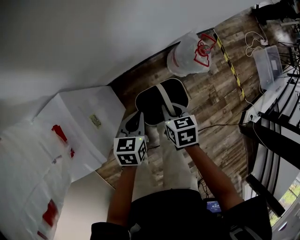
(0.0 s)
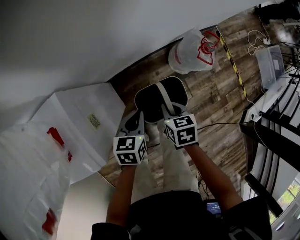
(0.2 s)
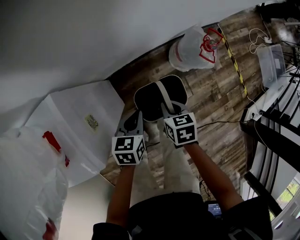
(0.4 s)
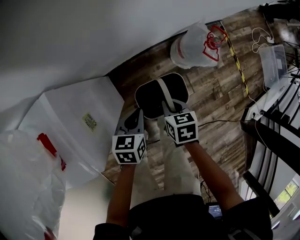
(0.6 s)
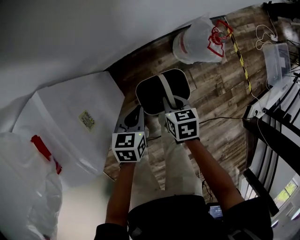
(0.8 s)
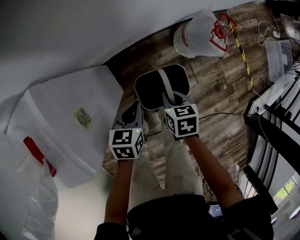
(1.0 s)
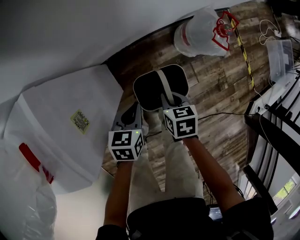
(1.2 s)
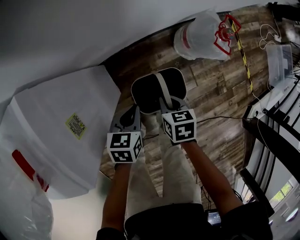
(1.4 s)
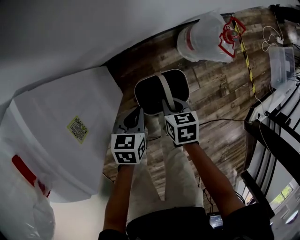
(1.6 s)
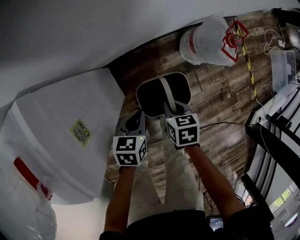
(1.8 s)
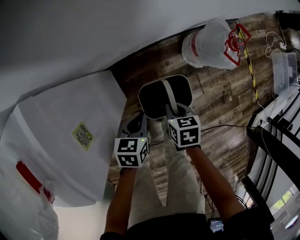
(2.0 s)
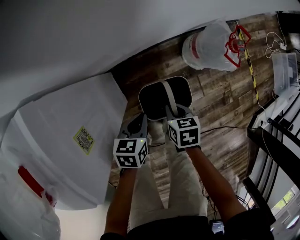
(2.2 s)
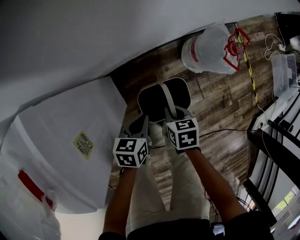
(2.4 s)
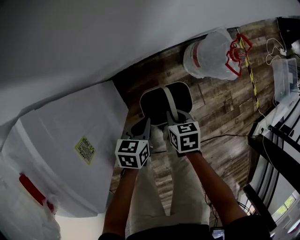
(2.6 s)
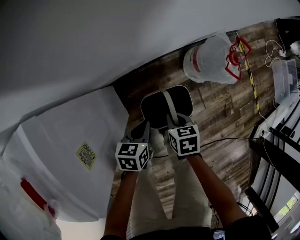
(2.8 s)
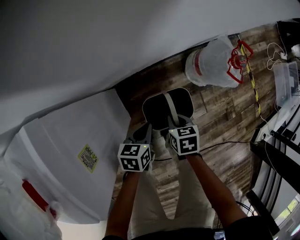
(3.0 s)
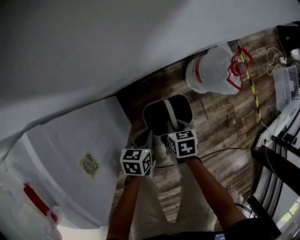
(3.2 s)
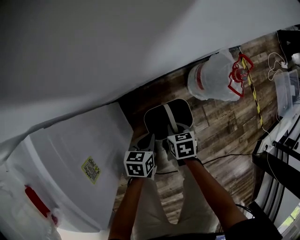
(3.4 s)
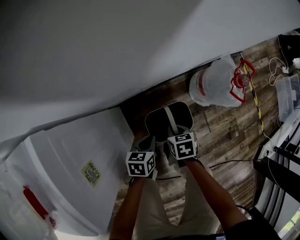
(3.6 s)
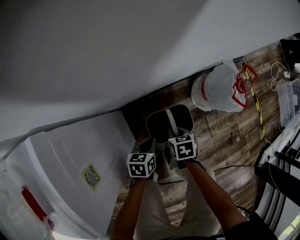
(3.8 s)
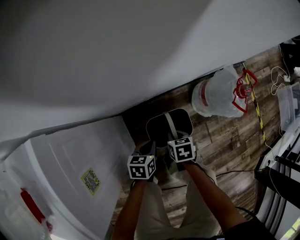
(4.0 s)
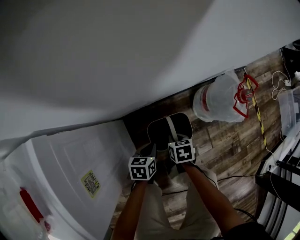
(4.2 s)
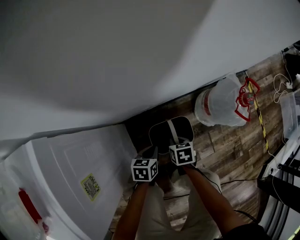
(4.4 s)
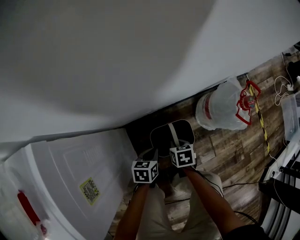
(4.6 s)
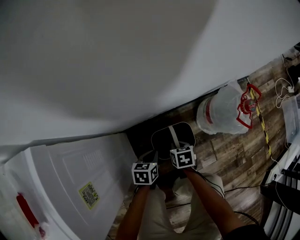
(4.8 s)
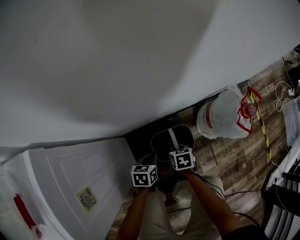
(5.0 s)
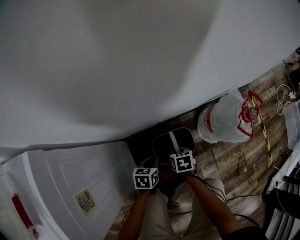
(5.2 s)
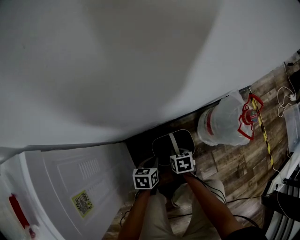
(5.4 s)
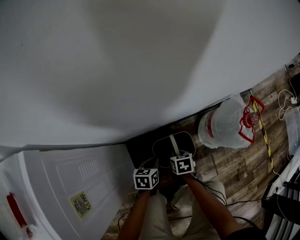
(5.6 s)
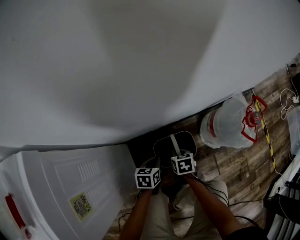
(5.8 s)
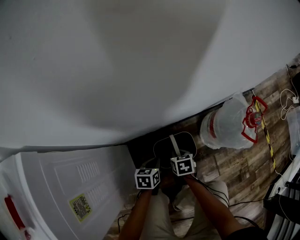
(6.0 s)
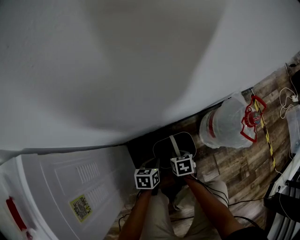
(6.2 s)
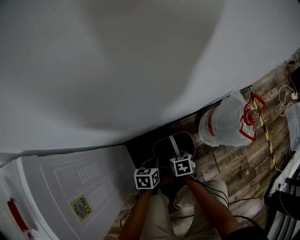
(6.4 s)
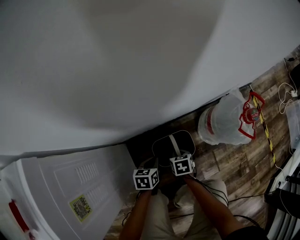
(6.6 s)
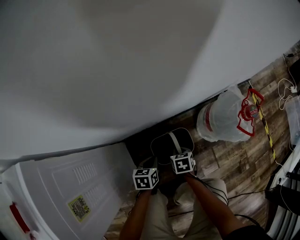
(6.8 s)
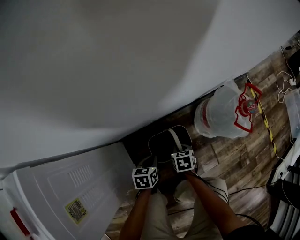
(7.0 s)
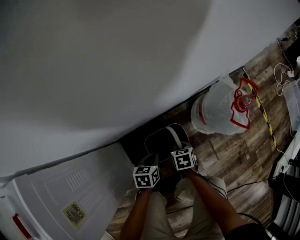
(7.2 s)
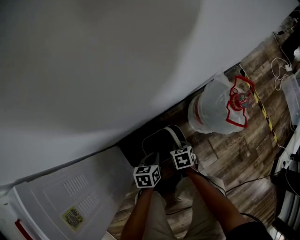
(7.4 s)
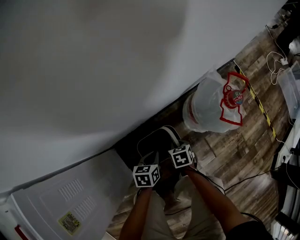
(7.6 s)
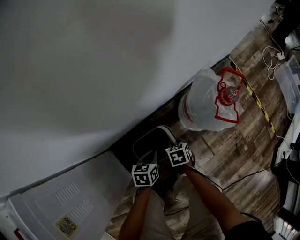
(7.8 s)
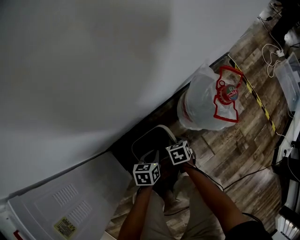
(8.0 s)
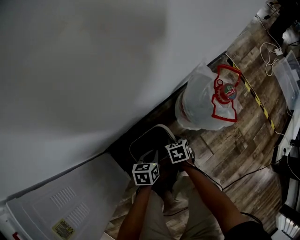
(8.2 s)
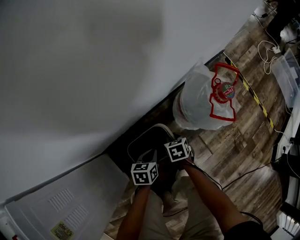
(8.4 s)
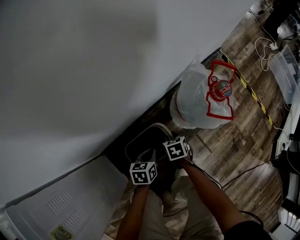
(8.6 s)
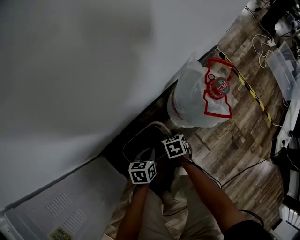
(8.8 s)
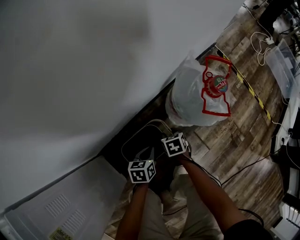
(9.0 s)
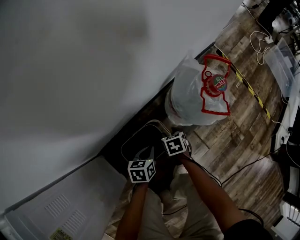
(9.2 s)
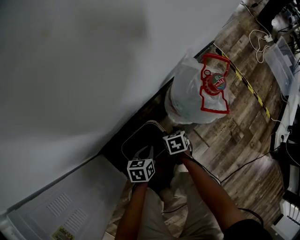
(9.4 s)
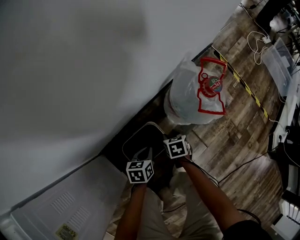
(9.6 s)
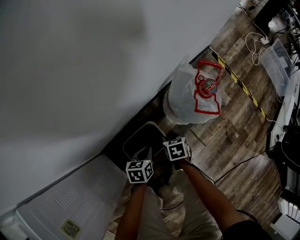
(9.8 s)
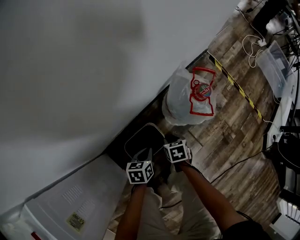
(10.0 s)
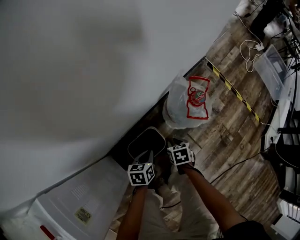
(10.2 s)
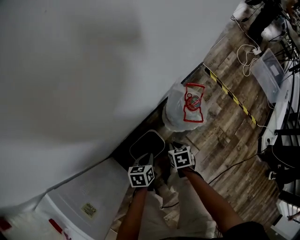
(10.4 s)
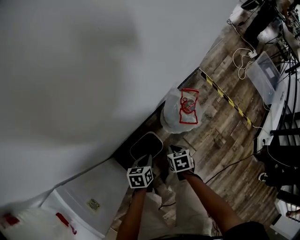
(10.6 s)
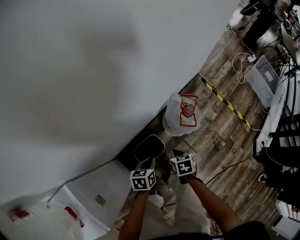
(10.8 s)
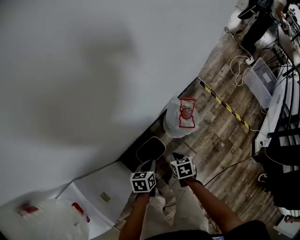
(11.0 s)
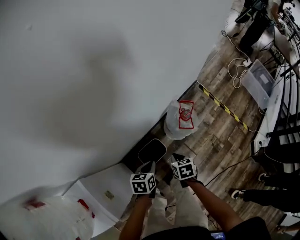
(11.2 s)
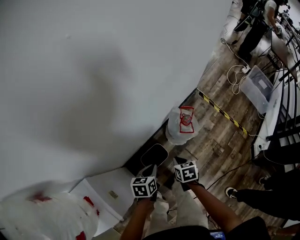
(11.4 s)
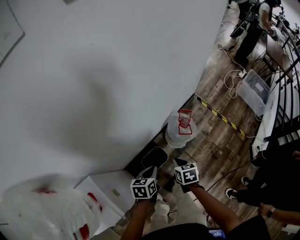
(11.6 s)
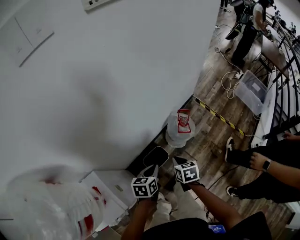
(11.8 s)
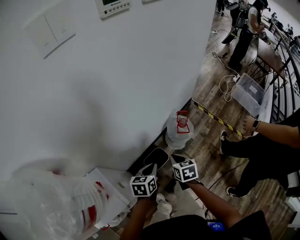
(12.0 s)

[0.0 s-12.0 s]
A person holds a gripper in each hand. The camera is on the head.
0.0 to 1.6 s: Both grippers travel together downward, approximately 15 cm.
1.6 to 3.0 s: Both grippers travel together downward, about 5 cm.
3.0 to 4.4 s: The right gripper heads downward and forward, covering some 10 cm. Meanwhile the left gripper heads downward, covering some 10 cm.
4.4 to 6.0 s: The grippers both shift downward by approximately 5 cm.
6.0 to 7.6 s: The two grippers go roughly 10 cm to the right.
7.6 to 9.0 s: Both grippers move to the right, about 5 cm. The right gripper opens up.
9.0 to 10.4 s: Both grippers move upward, roughly 20 cm. The right gripper closes up.
10.4 to 12.0 s: The two grippers go approximately 40 cm upward. The right gripper turns by roughly 20 degrees.

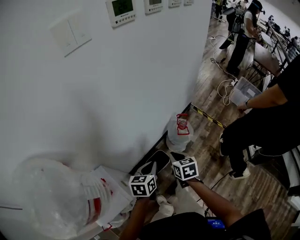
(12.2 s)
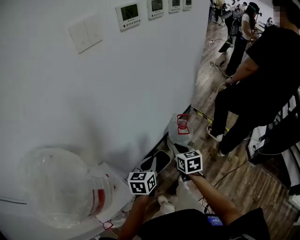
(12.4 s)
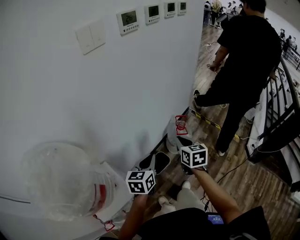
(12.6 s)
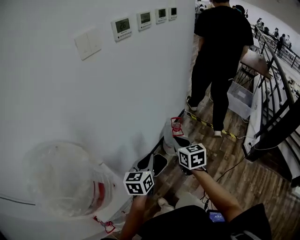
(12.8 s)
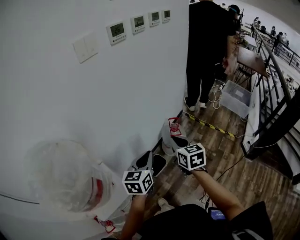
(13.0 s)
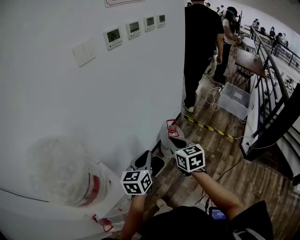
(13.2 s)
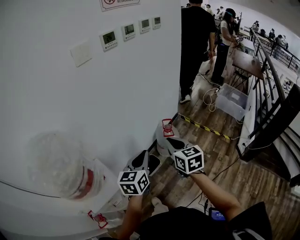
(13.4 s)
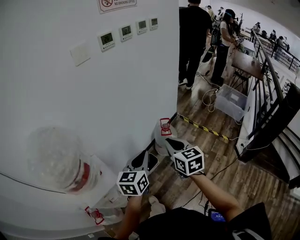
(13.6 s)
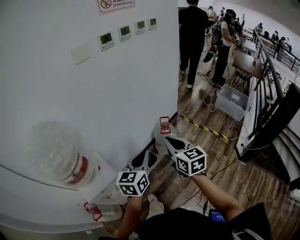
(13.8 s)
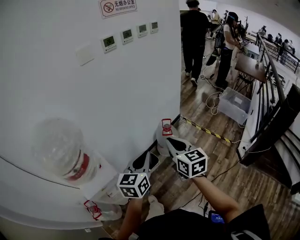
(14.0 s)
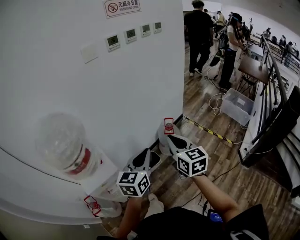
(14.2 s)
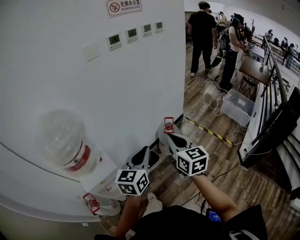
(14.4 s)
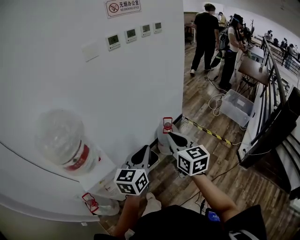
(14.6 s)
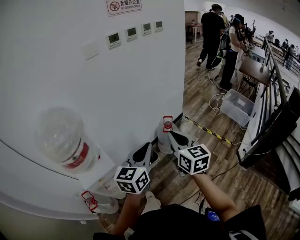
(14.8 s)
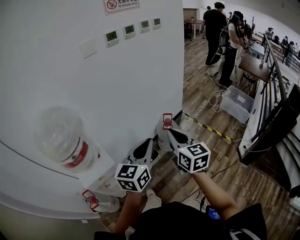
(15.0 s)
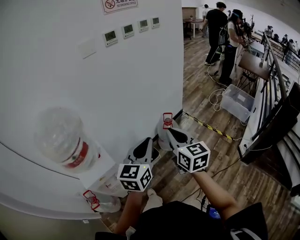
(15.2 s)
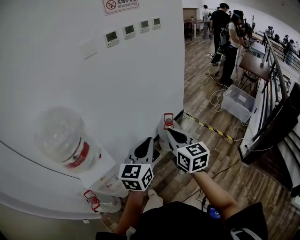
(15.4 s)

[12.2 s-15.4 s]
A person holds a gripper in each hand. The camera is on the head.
12.2 to 13.8 s: Both grippers move upward, backward and to the right, about 30 cm. The left gripper rotates roughly 30 degrees. The right gripper turns by about 30 degrees.
13.8 to 15.4 s: The left gripper goes some 10 cm upward and backward, while the right gripper changes place by roughly 5 cm.

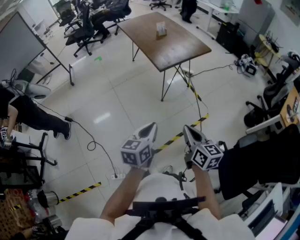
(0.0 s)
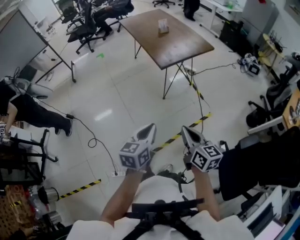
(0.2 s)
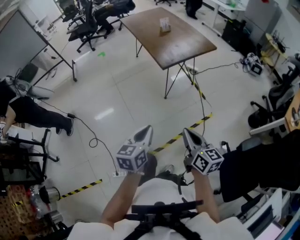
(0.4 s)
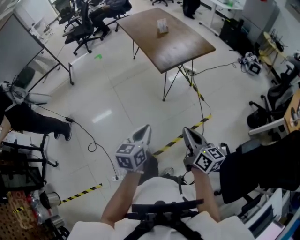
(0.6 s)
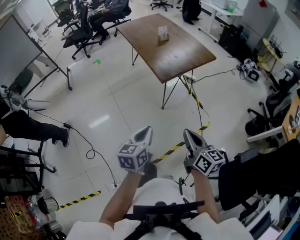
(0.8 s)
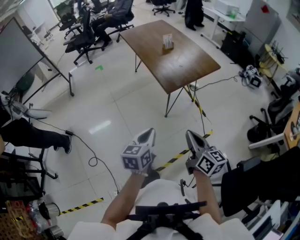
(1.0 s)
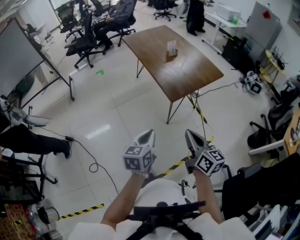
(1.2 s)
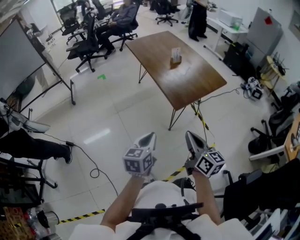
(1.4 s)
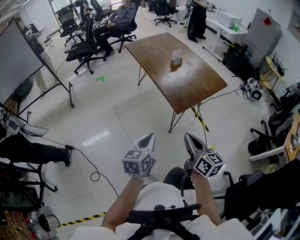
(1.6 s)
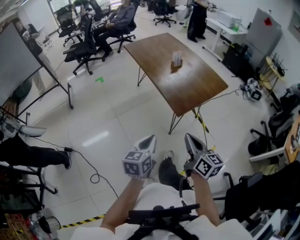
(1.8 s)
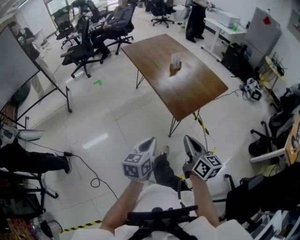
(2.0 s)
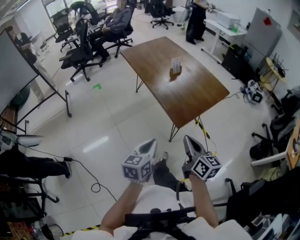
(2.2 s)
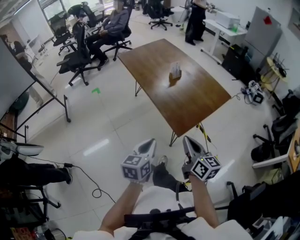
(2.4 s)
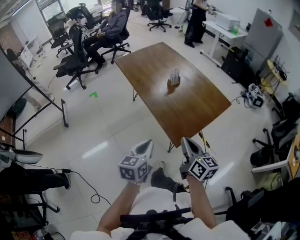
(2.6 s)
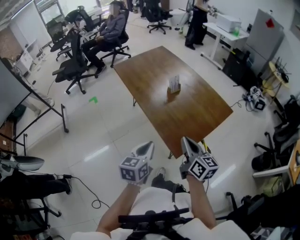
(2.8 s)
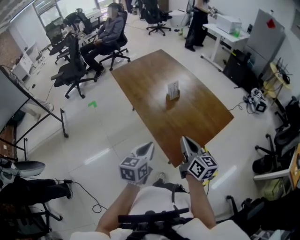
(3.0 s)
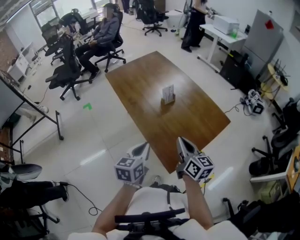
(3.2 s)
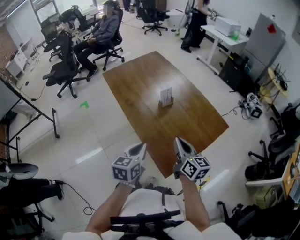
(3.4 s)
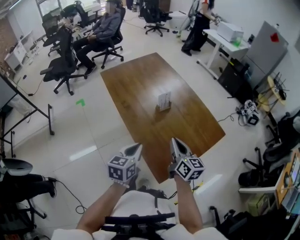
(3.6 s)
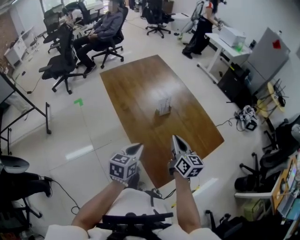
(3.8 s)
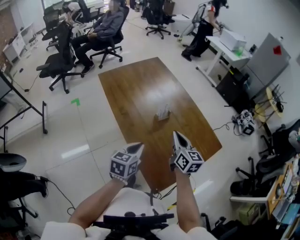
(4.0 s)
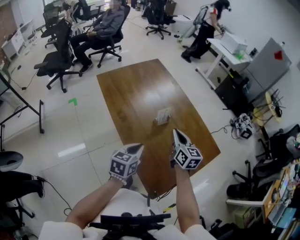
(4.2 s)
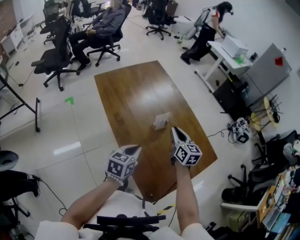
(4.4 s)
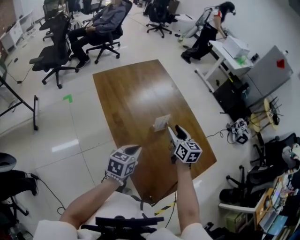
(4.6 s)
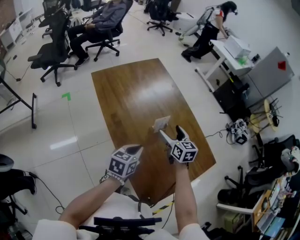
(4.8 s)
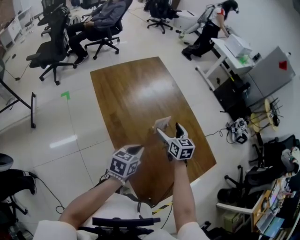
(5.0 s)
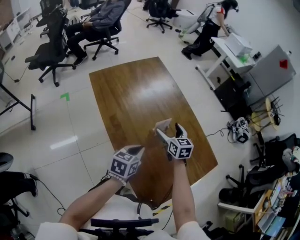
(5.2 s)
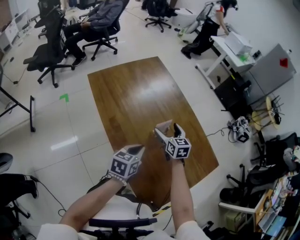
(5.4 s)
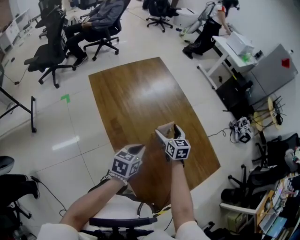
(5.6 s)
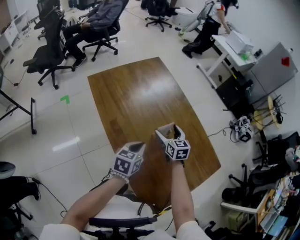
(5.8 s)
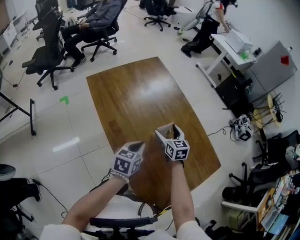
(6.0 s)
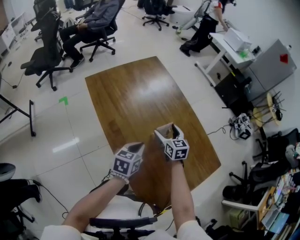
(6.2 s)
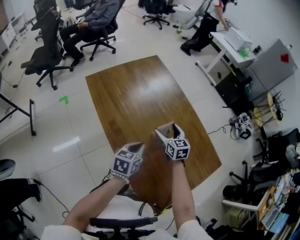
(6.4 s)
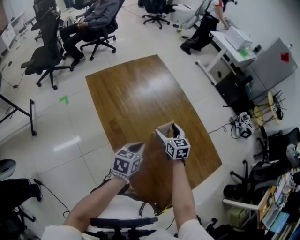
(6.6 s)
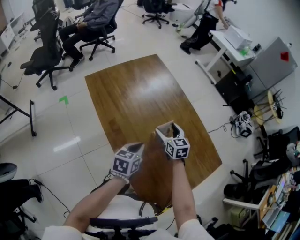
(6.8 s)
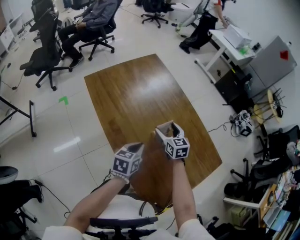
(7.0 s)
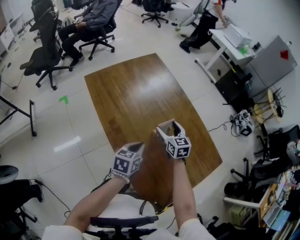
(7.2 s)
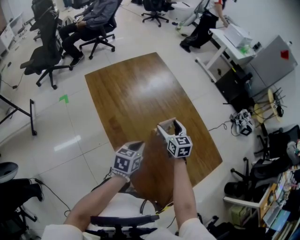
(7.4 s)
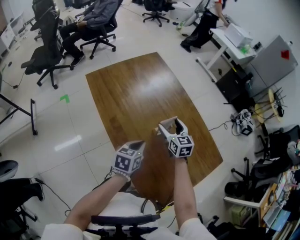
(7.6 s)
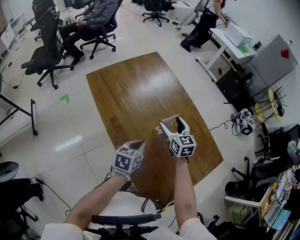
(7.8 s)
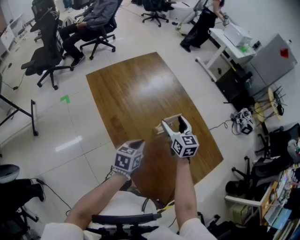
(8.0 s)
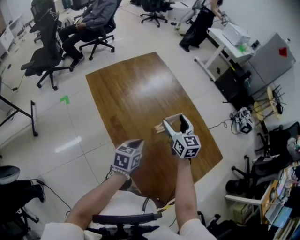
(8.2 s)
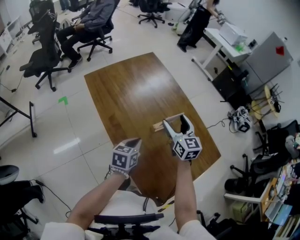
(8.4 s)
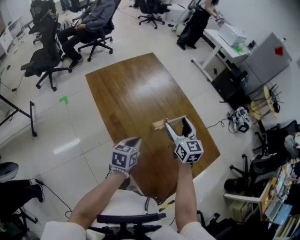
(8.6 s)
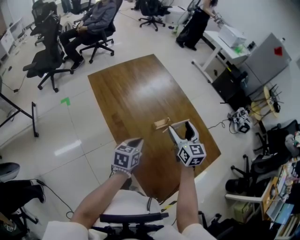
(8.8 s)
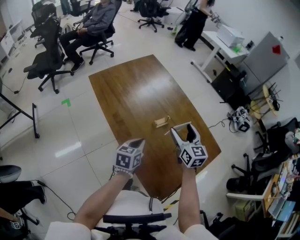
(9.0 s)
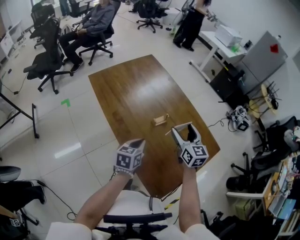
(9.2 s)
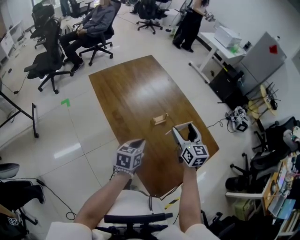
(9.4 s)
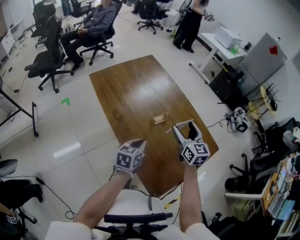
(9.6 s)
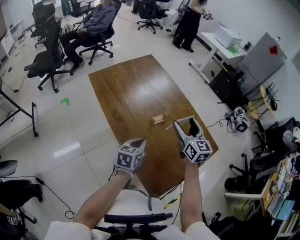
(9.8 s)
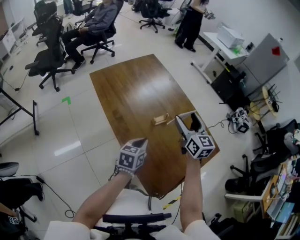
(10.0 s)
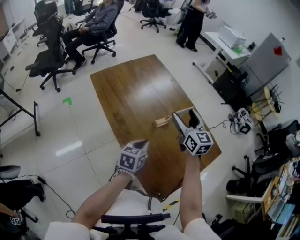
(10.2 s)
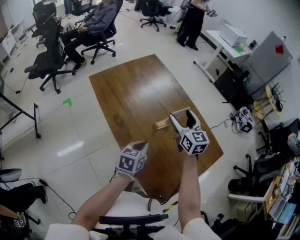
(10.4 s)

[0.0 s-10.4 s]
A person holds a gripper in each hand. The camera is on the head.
0.0 to 1.4 s: The right gripper travels forward by about 25 cm. Meanwhile the left gripper shifts about 25 cm forward and to the left.
1.4 to 3.0 s: The two grippers go approximately 35 cm forward.
3.0 to 4.4 s: Both grippers travel together forward, about 25 cm.
4.4 to 6.0 s: The right gripper shifts about 15 cm downward, forward and to the left, and opens. The left gripper travels forward by roughly 10 cm.
6.0 to 7.4 s: The grippers make only small movements.
7.4 to 9.0 s: The left gripper ends up about 5 cm from where it was. The right gripper moves upward, backward and to the right, roughly 15 cm.
9.0 to 10.4 s: The right gripper goes some 5 cm forward.
